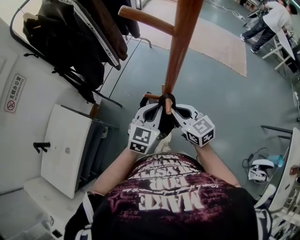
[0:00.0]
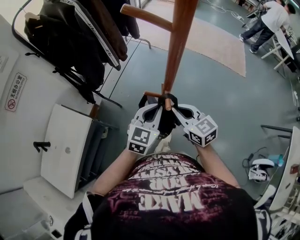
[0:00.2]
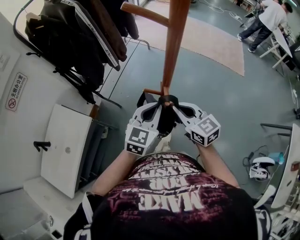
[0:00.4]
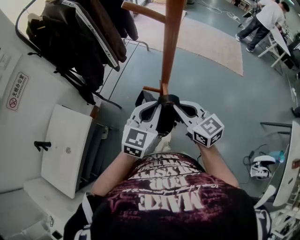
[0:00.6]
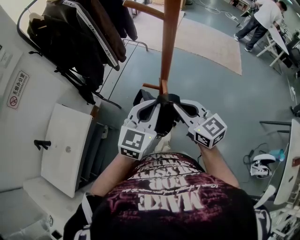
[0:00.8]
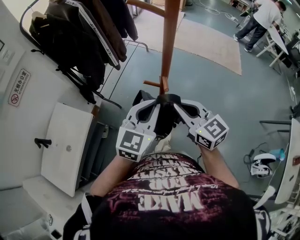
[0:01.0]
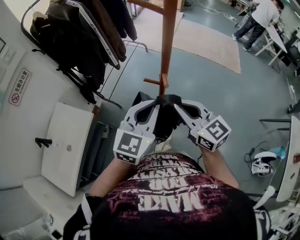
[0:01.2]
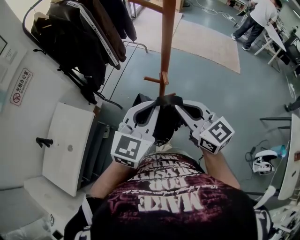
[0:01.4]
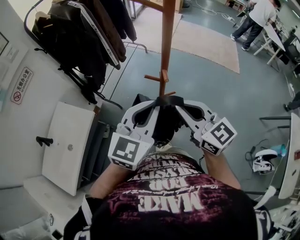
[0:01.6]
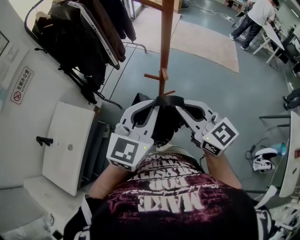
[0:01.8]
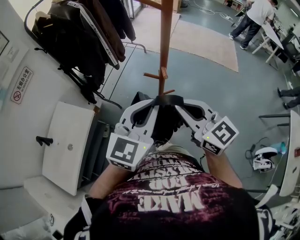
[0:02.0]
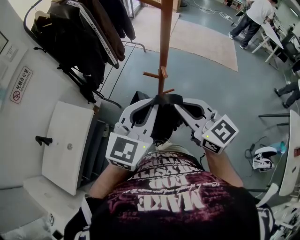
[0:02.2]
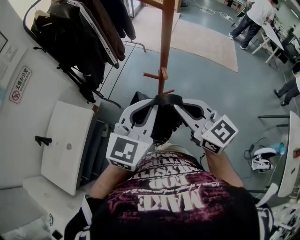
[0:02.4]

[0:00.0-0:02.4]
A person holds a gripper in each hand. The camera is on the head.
0:00.0 to 0:01.2: The grippers both shift upward and backward by approximately 15 cm.
0:01.2 to 0:02.4: The left gripper shifts by some 5 cm; the right gripper changes place by some 5 cm.

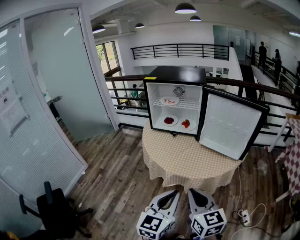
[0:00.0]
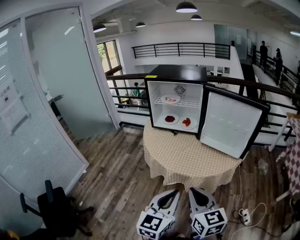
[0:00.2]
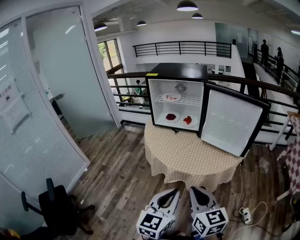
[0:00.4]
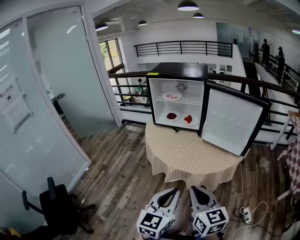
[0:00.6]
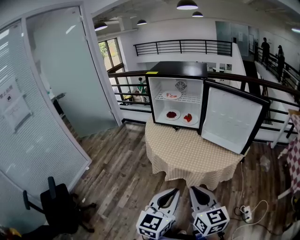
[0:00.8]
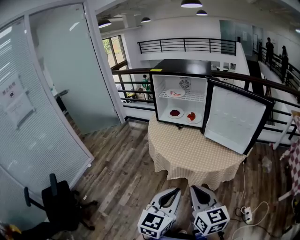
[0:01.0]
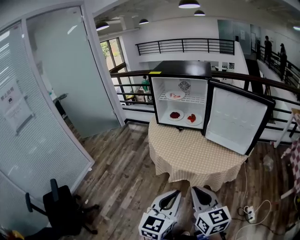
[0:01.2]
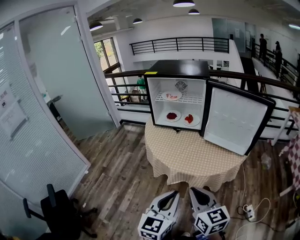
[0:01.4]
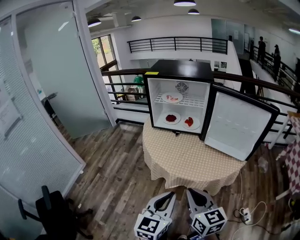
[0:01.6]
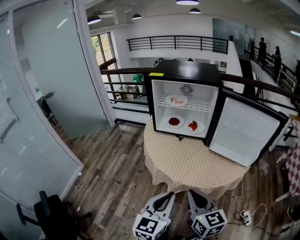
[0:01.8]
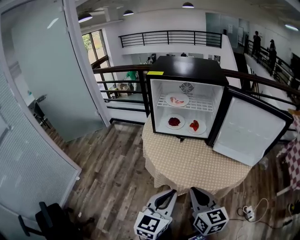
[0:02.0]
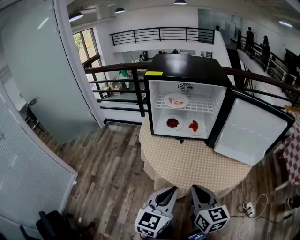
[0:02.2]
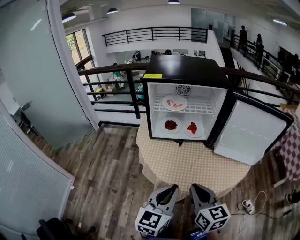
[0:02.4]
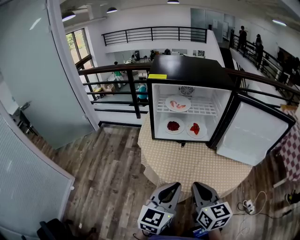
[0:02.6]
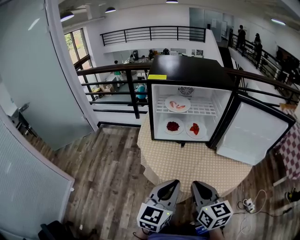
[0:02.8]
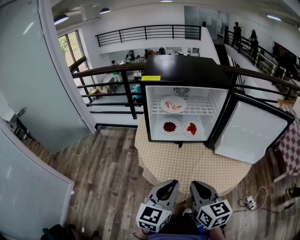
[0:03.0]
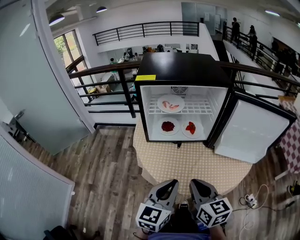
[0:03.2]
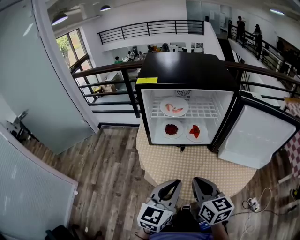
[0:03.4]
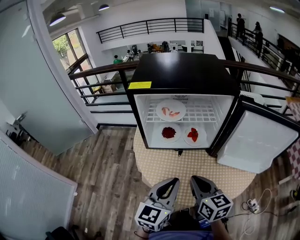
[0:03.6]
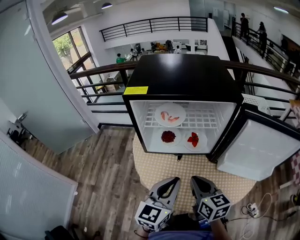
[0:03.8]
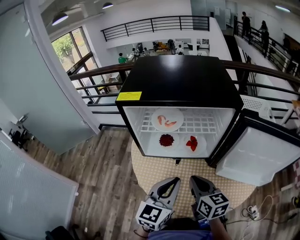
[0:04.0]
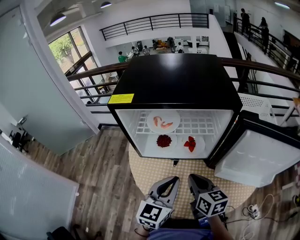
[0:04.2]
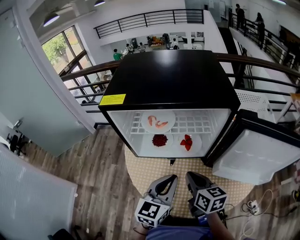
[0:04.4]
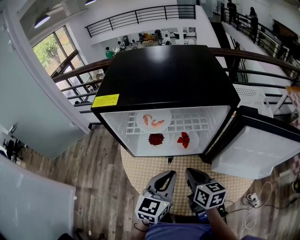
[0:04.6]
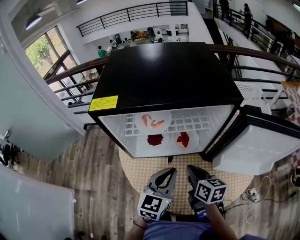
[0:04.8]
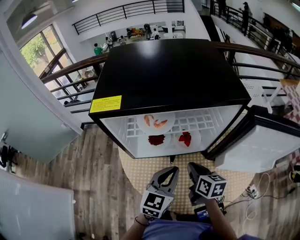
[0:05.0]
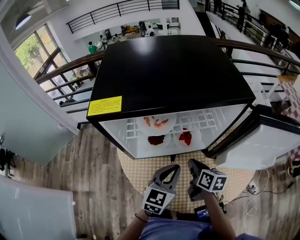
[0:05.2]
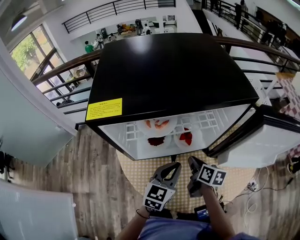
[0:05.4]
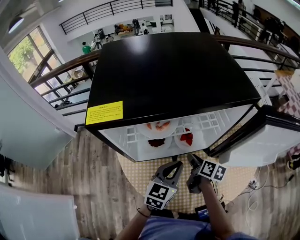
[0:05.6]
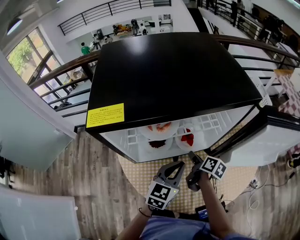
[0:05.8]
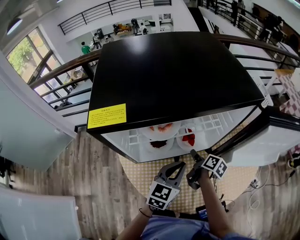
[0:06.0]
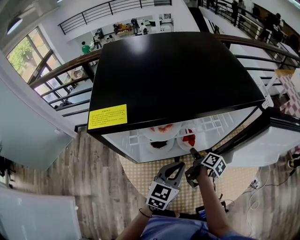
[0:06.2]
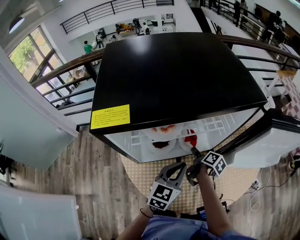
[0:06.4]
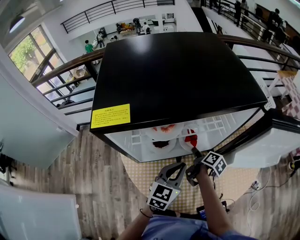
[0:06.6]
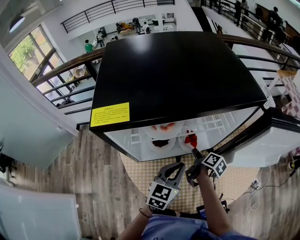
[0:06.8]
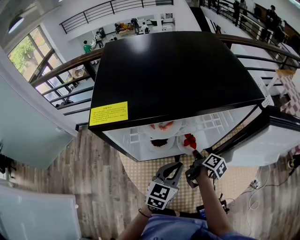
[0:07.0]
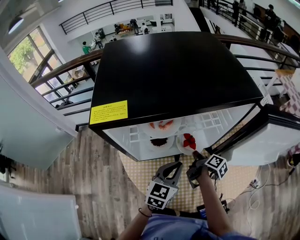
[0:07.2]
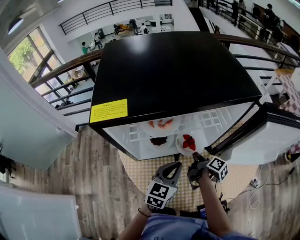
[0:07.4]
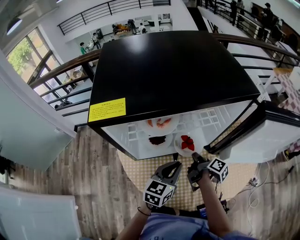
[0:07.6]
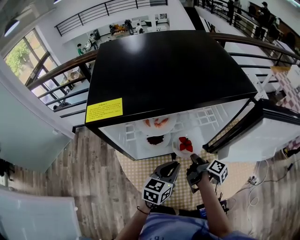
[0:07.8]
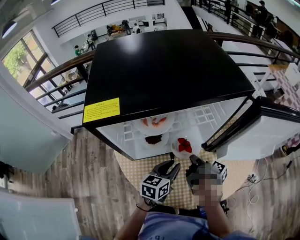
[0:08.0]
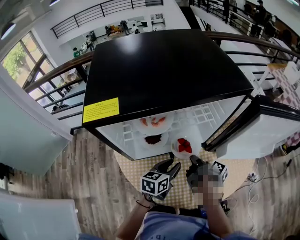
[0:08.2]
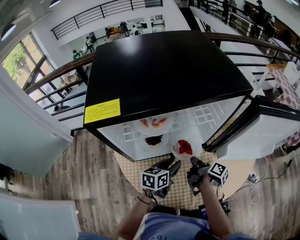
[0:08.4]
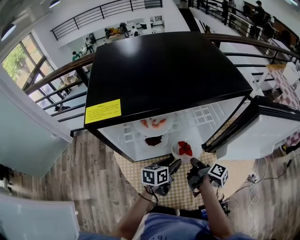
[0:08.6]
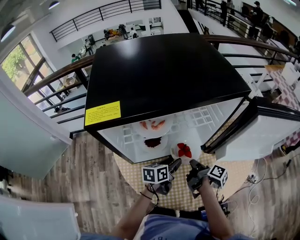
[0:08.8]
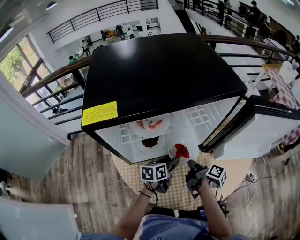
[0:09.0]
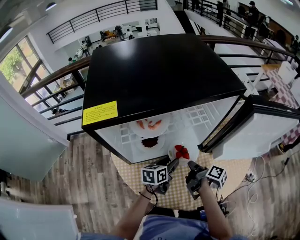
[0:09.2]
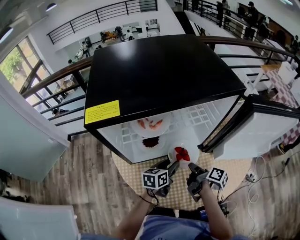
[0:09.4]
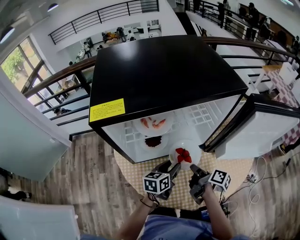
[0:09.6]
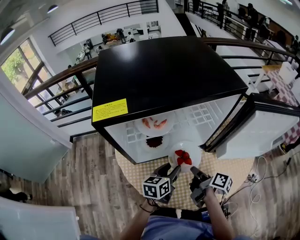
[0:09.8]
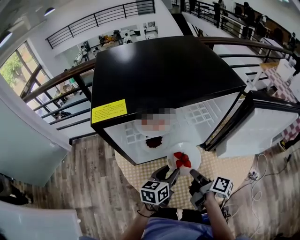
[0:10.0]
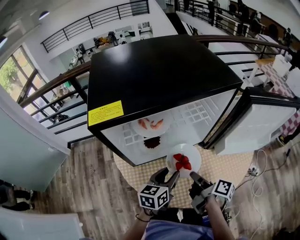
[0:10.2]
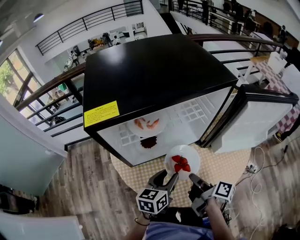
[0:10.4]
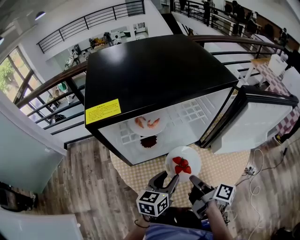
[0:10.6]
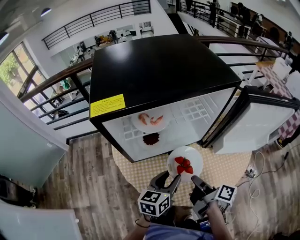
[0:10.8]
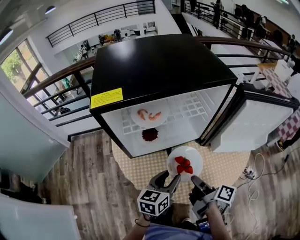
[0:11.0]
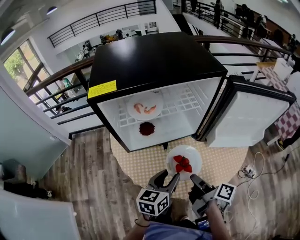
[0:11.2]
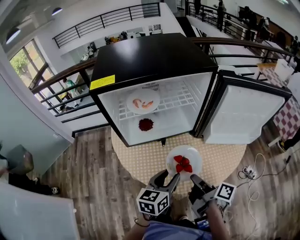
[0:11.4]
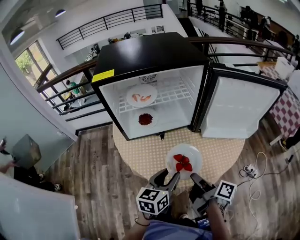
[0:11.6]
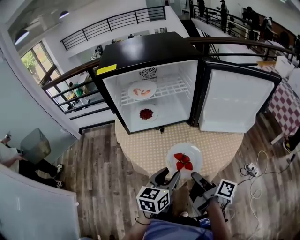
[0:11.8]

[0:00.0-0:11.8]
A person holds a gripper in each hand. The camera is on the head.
0:00.0 to 0:01.4: The grippers move only a little.
0:01.4 to 0:03.0: The two grippers go approximately 30 cm forward and to the left.
0:03.0 to 0:04.4: Both grippers move forward, about 20 cm.
0:04.4 to 0:06.0: The right gripper travels downward and forward by approximately 20 cm, rotates around the line of its fingers by approximately 50 degrees, clockwise from behind, and opens up; the left gripper travels forward and downward by approximately 10 cm, and swivels about 20 degrees.
0:06.0 to 0:07.4: The right gripper closes up.
0:07.4 to 0:08.8: The left gripper moves downward, roughly 10 cm, changes its angle by some 40 degrees, and opens.
0:08.8 to 0:10.4: The grippers both shift backward and upward by roughly 10 cm.
0:10.4 to 0:11.8: Both grippers travel together backward and to the right, some 20 cm.

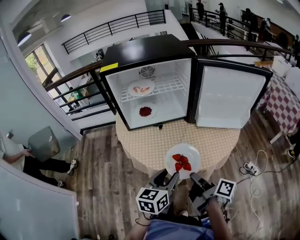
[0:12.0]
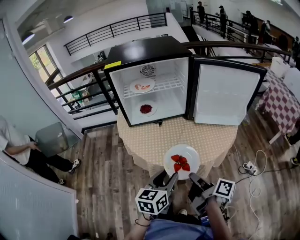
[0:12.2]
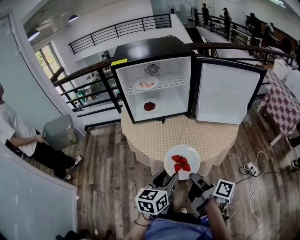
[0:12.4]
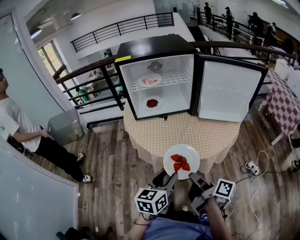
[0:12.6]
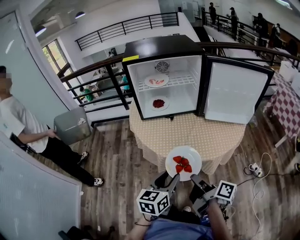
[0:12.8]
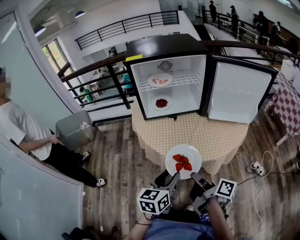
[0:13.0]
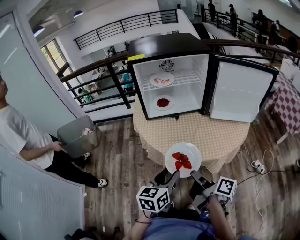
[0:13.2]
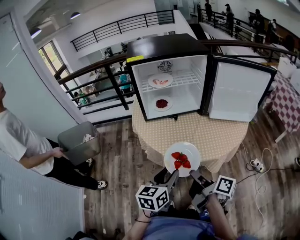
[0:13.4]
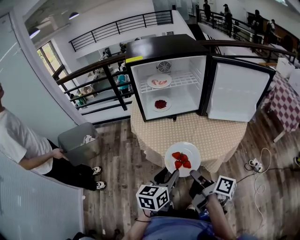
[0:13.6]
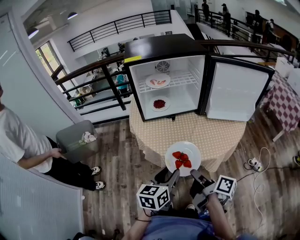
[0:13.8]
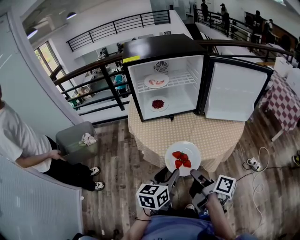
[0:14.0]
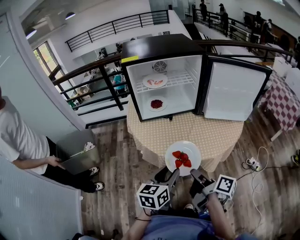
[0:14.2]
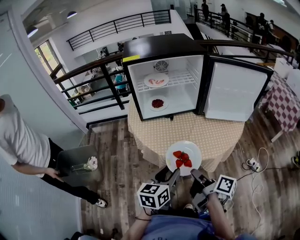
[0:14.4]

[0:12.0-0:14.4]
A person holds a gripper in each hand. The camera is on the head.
0:12.0 to 0:13.2: The two grippers go roughly 10 cm to the left and backward.
0:13.2 to 0:14.4: The grippers stay close to where they were, moving slightly.

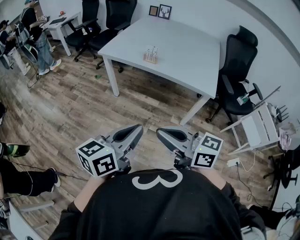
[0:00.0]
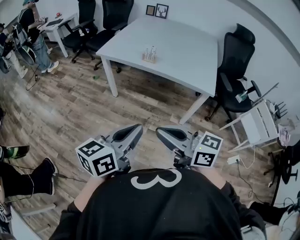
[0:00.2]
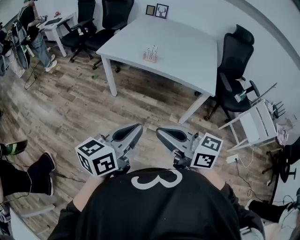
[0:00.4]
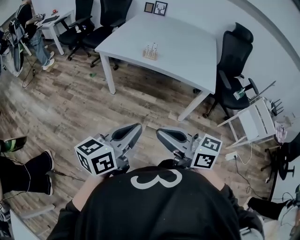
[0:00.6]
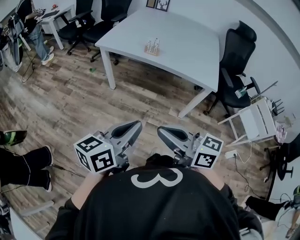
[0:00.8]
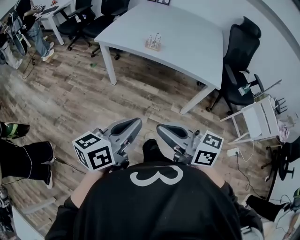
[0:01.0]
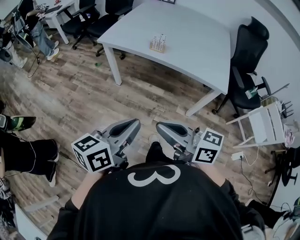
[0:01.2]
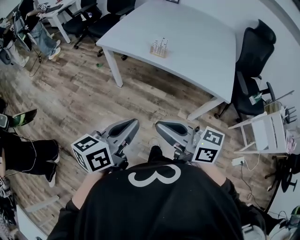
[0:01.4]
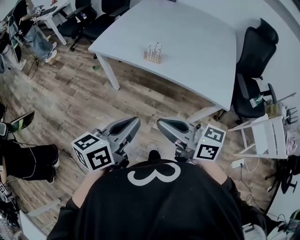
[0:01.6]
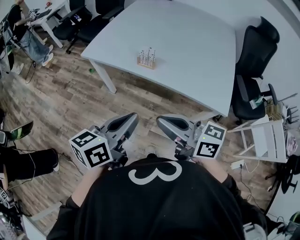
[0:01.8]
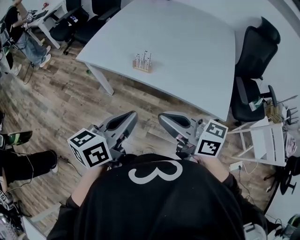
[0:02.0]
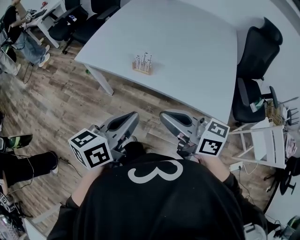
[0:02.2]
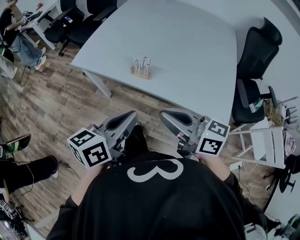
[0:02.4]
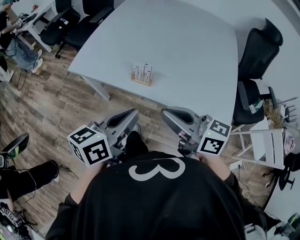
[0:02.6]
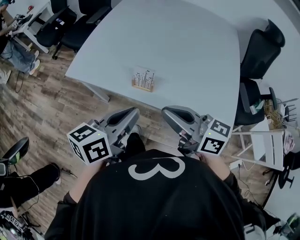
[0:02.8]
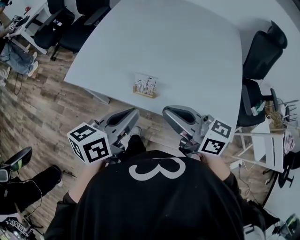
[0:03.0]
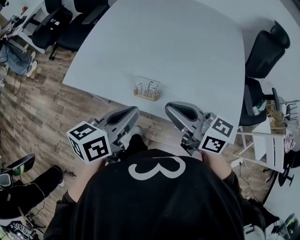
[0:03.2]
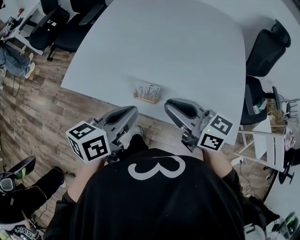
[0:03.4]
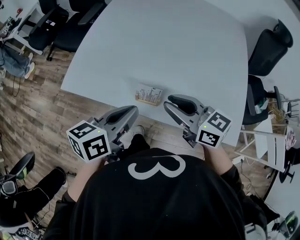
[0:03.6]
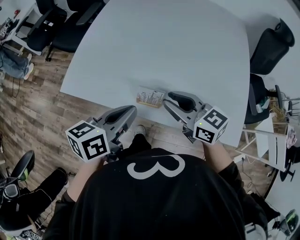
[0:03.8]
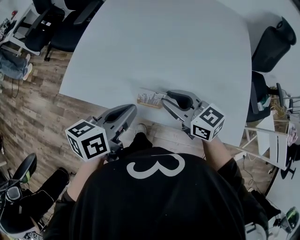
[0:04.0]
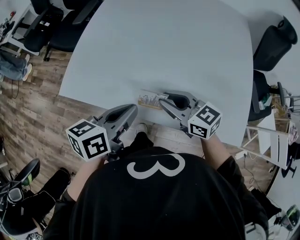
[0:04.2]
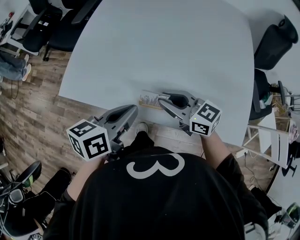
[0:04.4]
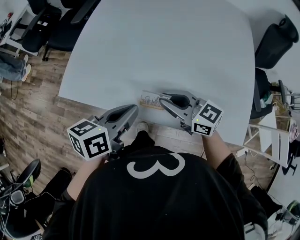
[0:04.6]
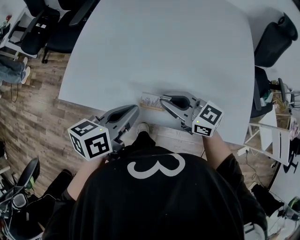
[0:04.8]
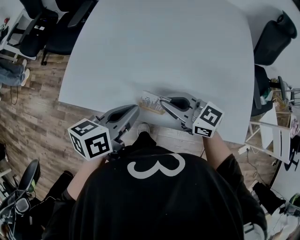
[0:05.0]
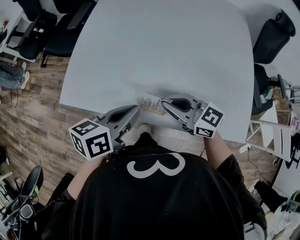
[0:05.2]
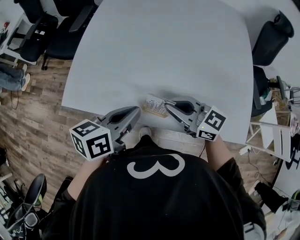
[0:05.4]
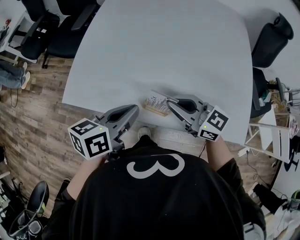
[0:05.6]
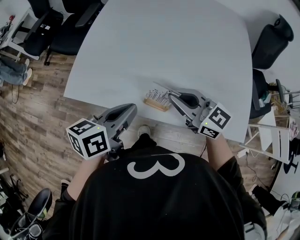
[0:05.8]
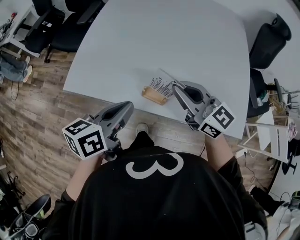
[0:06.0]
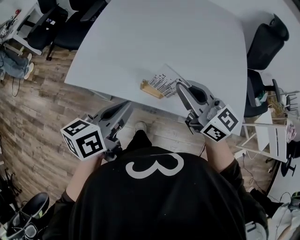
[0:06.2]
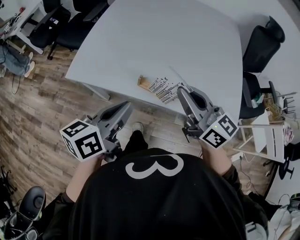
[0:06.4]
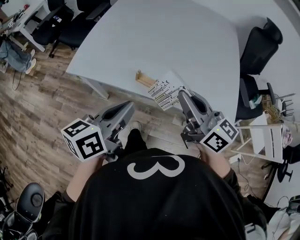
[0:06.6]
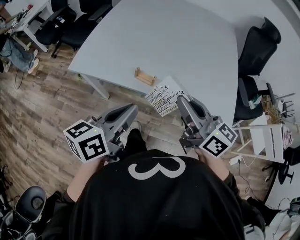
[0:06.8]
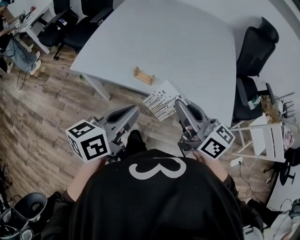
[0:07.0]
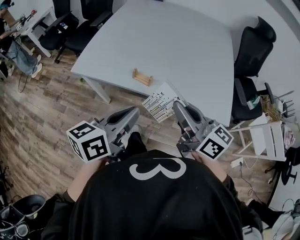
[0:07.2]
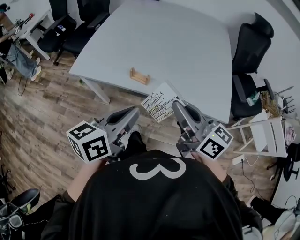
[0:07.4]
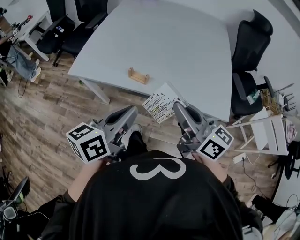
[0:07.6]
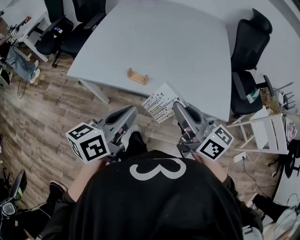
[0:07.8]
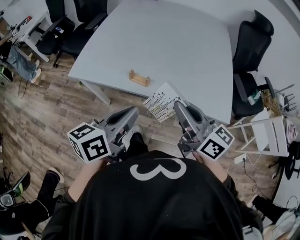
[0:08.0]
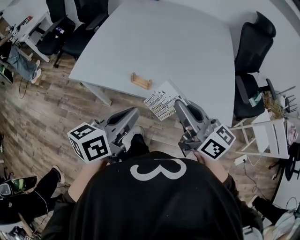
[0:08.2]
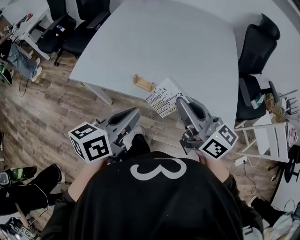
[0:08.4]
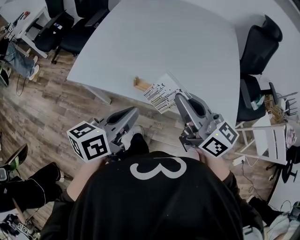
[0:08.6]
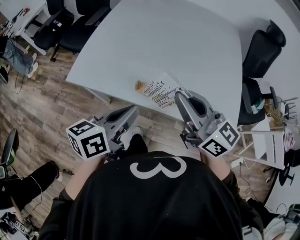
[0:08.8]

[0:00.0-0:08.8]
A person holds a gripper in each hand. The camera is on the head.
0:00.0 to 0:01.4: The two grippers go some 15 cm forward.
0:01.4 to 0:03.0: Both grippers move forward, some 35 cm.
0:03.0 to 0:04.4: The left gripper shifts roughly 10 cm forward and downward; the right gripper heads forward and downward, covering some 15 cm, and opens.
0:04.4 to 0:05.8: The right gripper heads upward, covering approximately 5 cm.
0:05.8 to 0:07.4: The left gripper is displaced backward, to the right and upward by about 20 cm. The right gripper moves backward, upward and to the right, about 25 cm, and turns by roughly 30 degrees.
0:07.4 to 0:08.8: The two grippers go roughly 10 cm forward.
